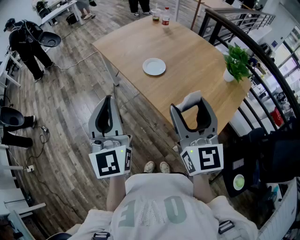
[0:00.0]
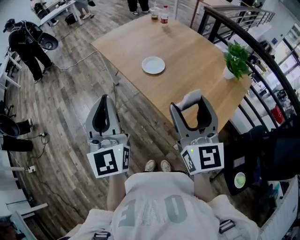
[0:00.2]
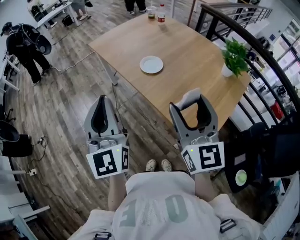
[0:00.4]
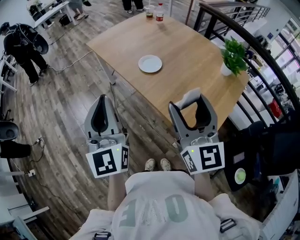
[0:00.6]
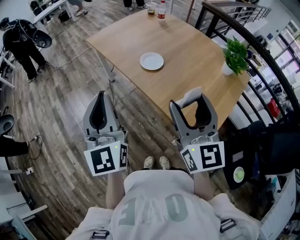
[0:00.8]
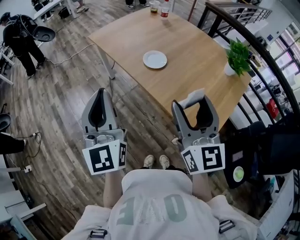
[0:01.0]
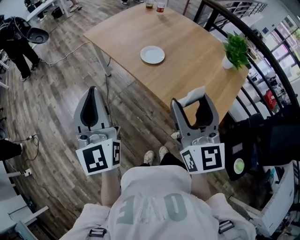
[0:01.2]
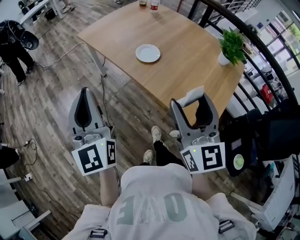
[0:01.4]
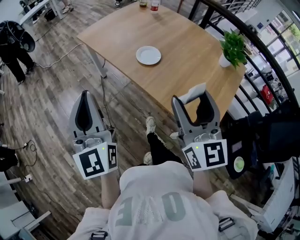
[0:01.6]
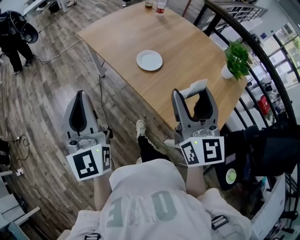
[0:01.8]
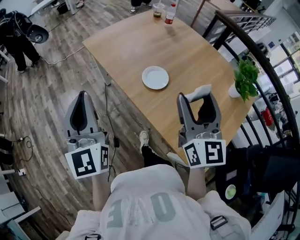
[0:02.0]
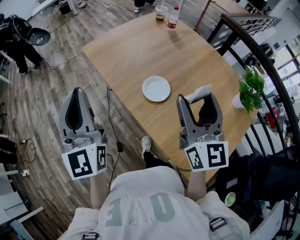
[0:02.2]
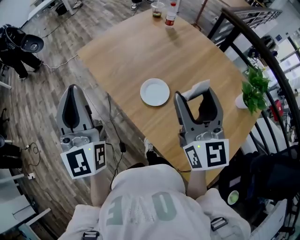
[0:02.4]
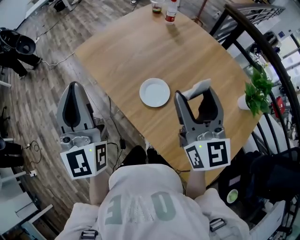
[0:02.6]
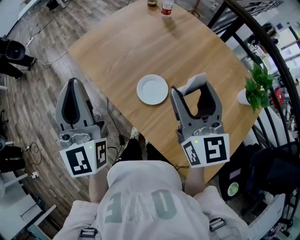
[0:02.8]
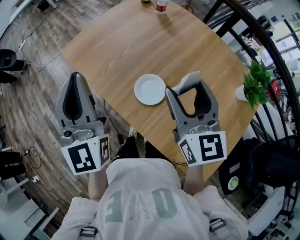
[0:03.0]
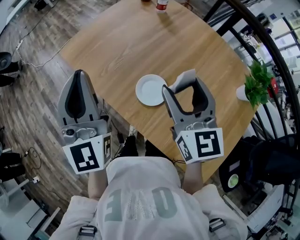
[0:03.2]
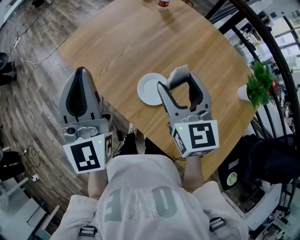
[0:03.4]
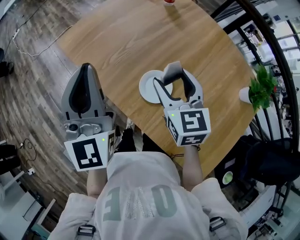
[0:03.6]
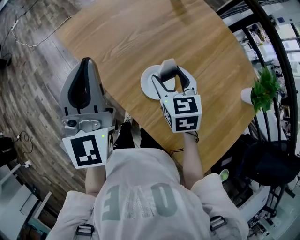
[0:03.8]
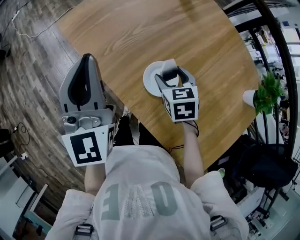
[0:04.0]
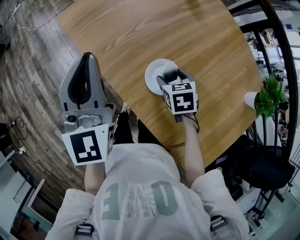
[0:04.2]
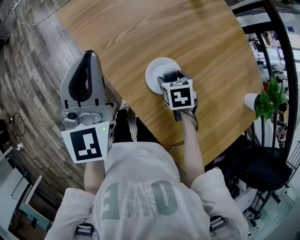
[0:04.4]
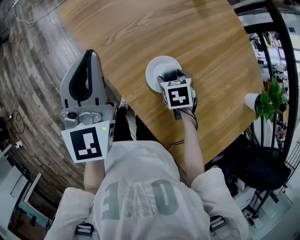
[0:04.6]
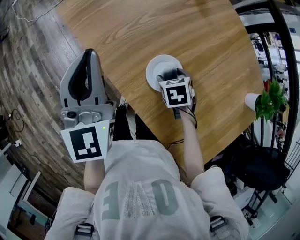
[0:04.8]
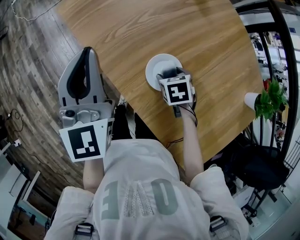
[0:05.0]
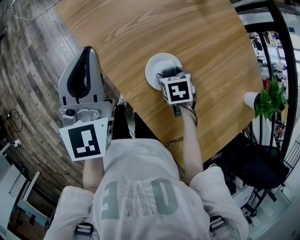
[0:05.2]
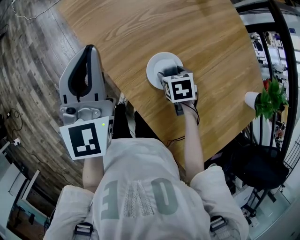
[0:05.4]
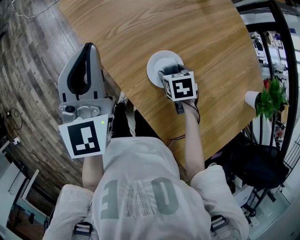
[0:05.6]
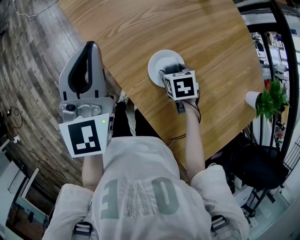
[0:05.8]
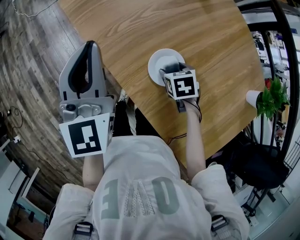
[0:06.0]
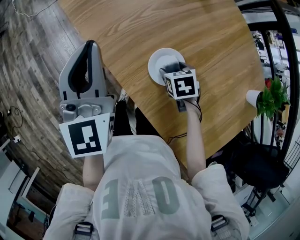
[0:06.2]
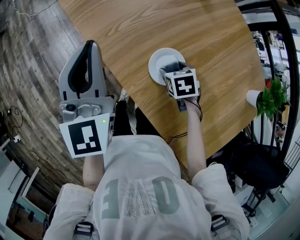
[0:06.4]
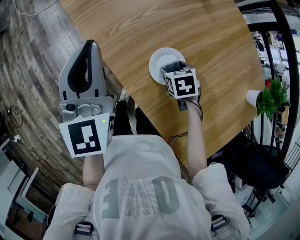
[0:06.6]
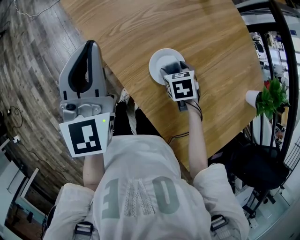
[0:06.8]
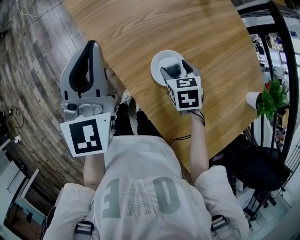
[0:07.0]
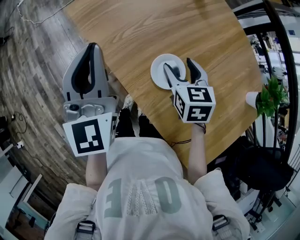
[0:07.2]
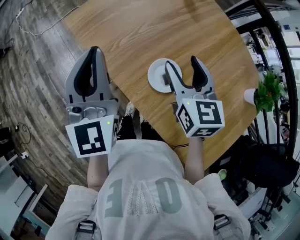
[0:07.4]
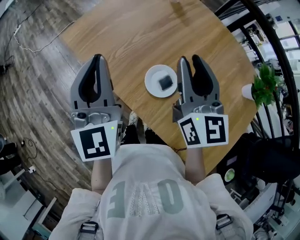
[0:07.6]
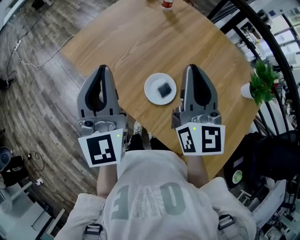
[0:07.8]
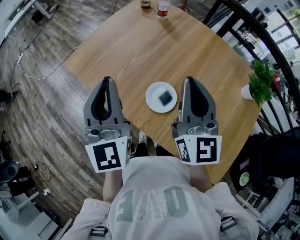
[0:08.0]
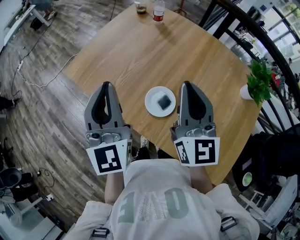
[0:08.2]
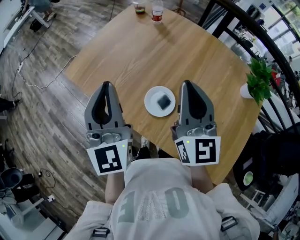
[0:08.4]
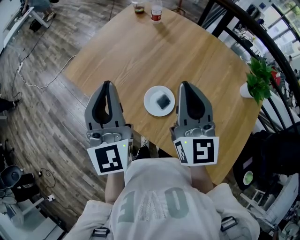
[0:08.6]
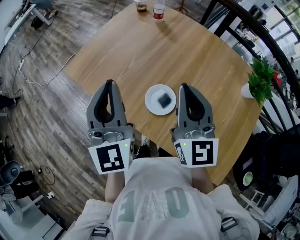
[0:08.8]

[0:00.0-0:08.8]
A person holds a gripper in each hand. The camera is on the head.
0:00.0 to 0:01.4: The left gripper goes approximately 10 cm to the left.
0:01.4 to 0:03.0: Both grippers travel together forward, roughly 35 cm.
0:03.0 to 0:04.4: The left gripper shifts some 10 cm downward and forward. The right gripper moves downward, roughly 30 cm, and tilts its fingers approximately 60 degrees downward.
0:04.4 to 0:05.8: The grippers move only a little.
0:05.8 to 0:07.4: The right gripper heads upward, covering some 25 cm, and angles its fingers upward, by some 50 degrees. Meanwhile the left gripper moves upward, some 5 cm.
0:07.4 to 0:08.8: The left gripper heads to the right, covering roughly 10 cm. The right gripper goes approximately 10 cm upward and to the right, turns by some 30 degrees, and closes.

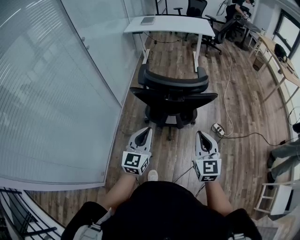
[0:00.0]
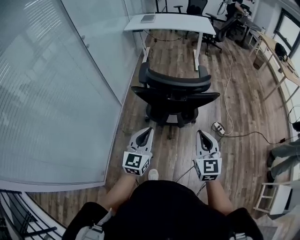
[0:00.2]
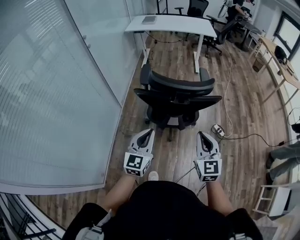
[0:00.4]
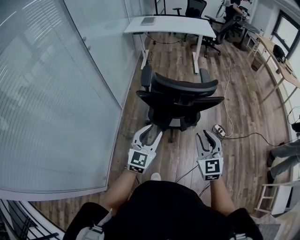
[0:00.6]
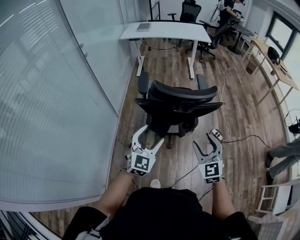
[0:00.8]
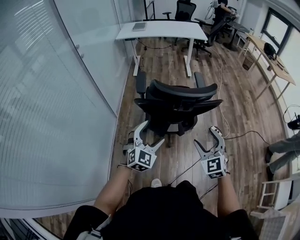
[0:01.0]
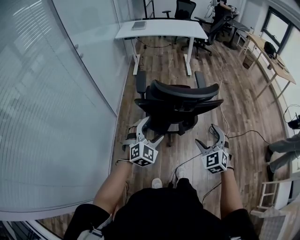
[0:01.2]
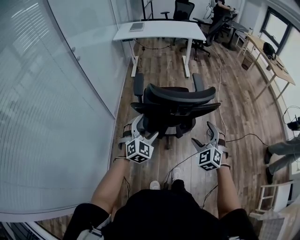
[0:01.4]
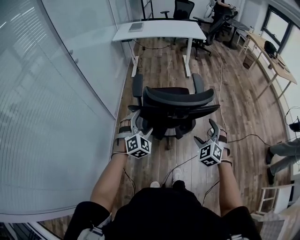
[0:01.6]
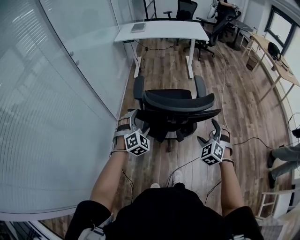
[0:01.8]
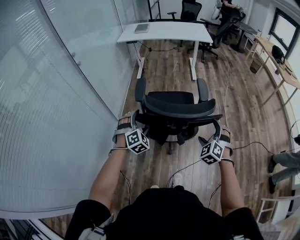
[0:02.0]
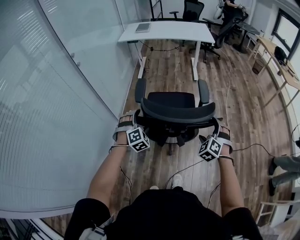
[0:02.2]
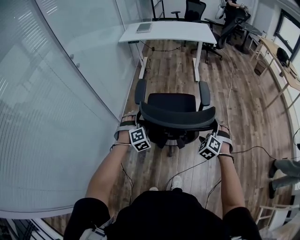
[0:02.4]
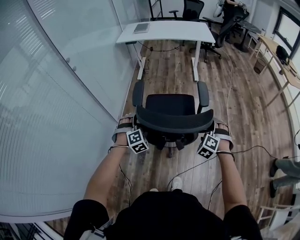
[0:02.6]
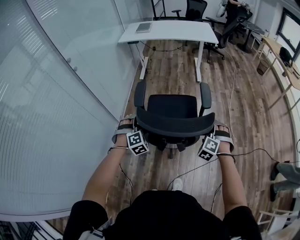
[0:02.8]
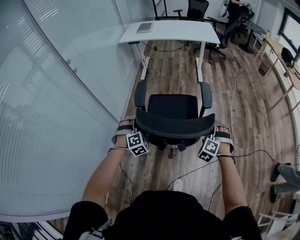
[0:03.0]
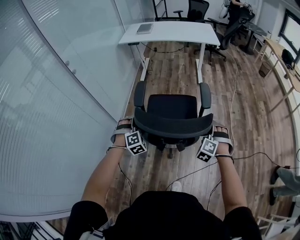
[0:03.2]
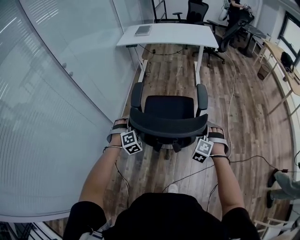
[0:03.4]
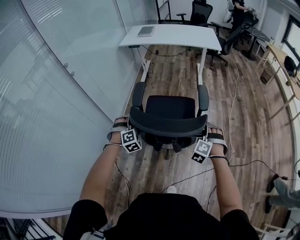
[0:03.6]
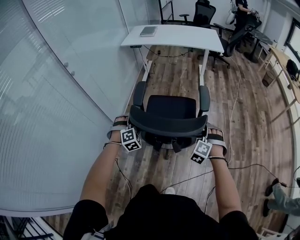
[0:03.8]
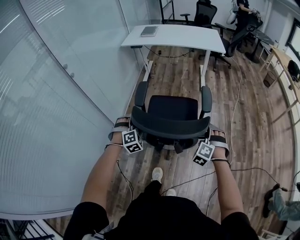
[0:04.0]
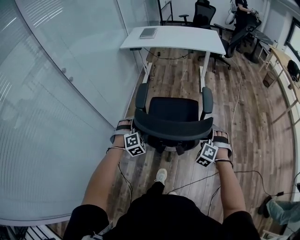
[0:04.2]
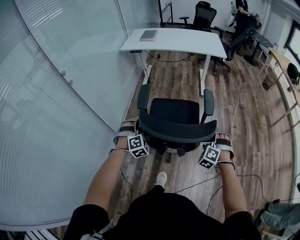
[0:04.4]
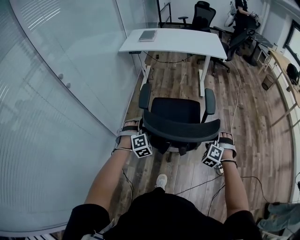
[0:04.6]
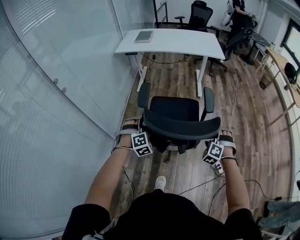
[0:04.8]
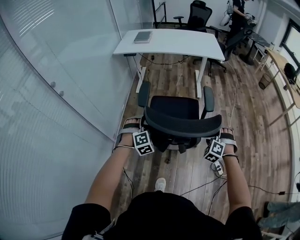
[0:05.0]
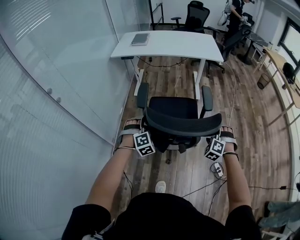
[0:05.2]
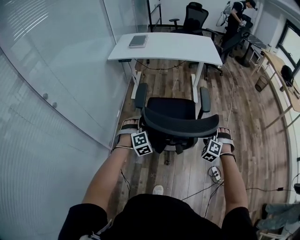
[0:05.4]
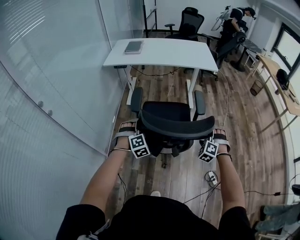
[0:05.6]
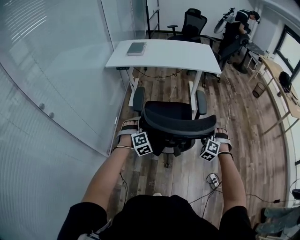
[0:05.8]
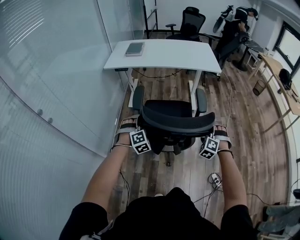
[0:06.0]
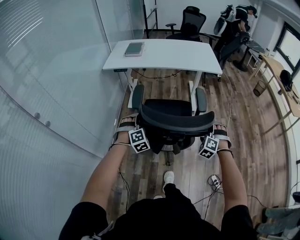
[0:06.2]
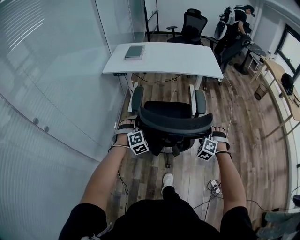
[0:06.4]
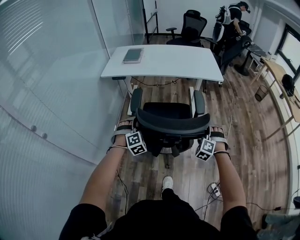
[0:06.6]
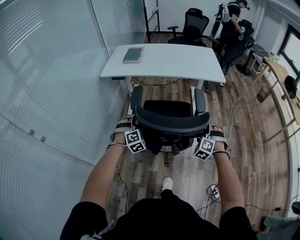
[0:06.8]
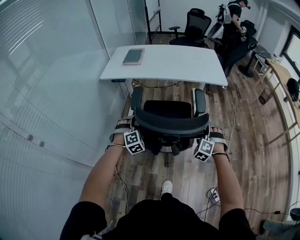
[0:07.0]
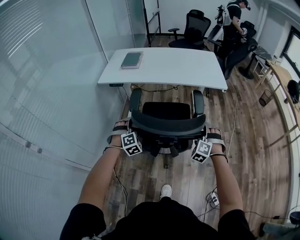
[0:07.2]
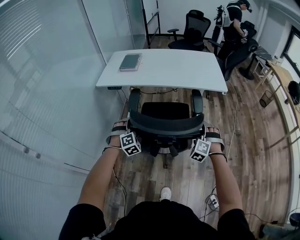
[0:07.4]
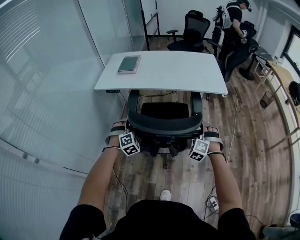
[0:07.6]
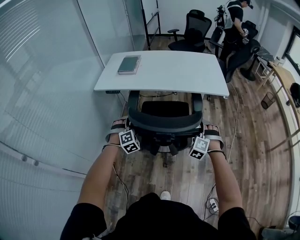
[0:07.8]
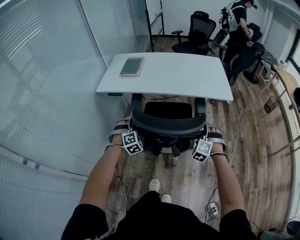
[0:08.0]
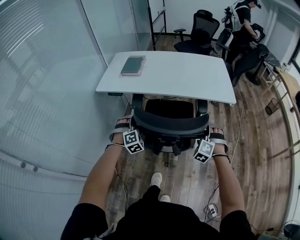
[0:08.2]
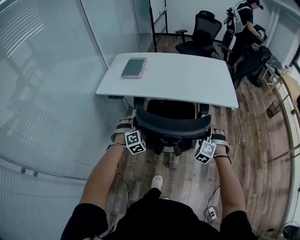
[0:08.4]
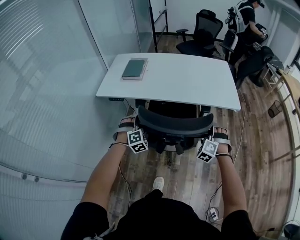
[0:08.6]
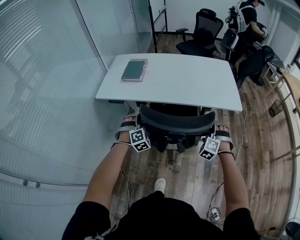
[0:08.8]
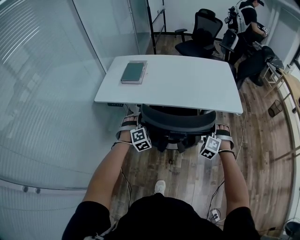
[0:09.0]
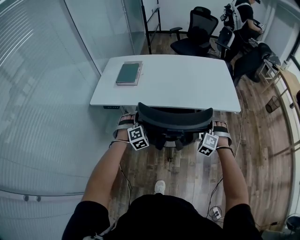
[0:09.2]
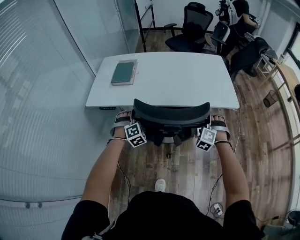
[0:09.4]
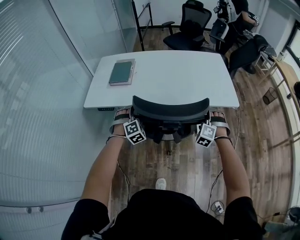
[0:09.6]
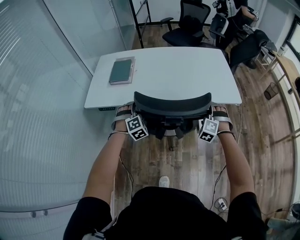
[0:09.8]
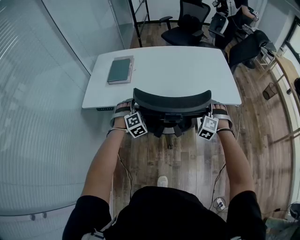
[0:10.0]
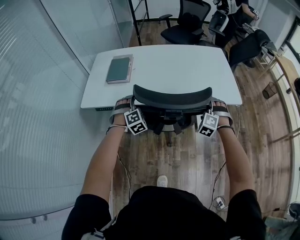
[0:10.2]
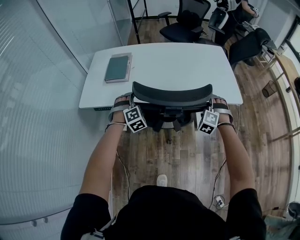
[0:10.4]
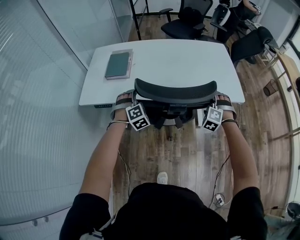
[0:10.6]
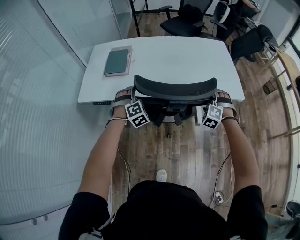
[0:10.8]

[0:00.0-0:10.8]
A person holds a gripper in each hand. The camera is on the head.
0:00.0 to 0:01.6: The left gripper goes approximately 15 cm forward, rotates around the line of its fingers by roughly 50 degrees, clockwise from behind, and opens, while the right gripper is displaced forward and downward by approximately 15 cm, turns by some 50 degrees, and opens its fingers.
0:01.6 to 0:03.0: Both grippers move forward and downward, some 15 cm. The left gripper swivels some 30 degrees, while the right gripper swivels some 30 degrees.
0:03.0 to 0:04.6: The grippers both shift forward by about 15 cm.
0:04.6 to 0:06.2: Both grippers move forward, about 25 cm.
0:06.2 to 0:07.8: The grippers both shift forward by roughly 30 cm.
0:07.8 to 0:09.2: Both grippers move forward, about 20 cm.
0:09.2 to 0:10.8: Both grippers travel together forward, about 10 cm.

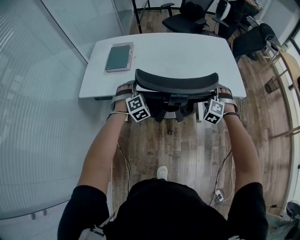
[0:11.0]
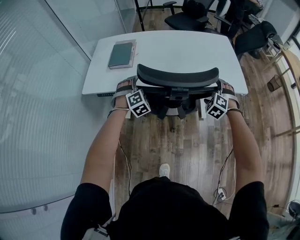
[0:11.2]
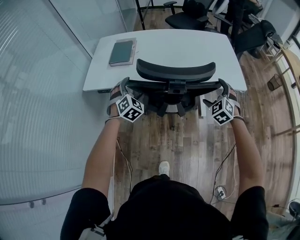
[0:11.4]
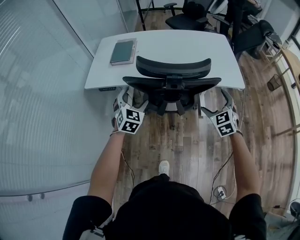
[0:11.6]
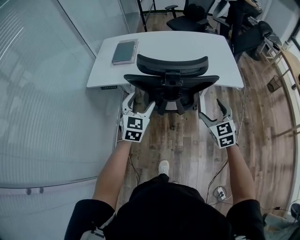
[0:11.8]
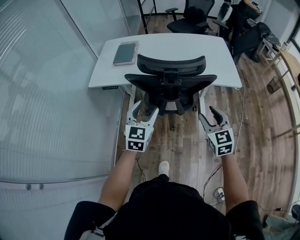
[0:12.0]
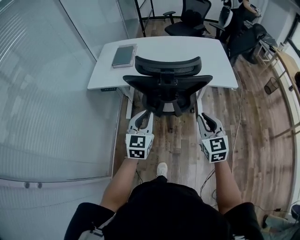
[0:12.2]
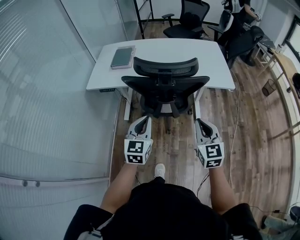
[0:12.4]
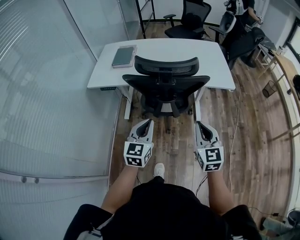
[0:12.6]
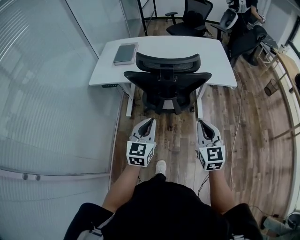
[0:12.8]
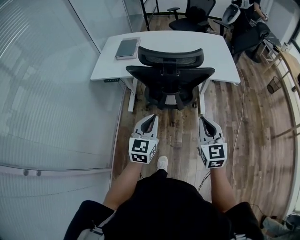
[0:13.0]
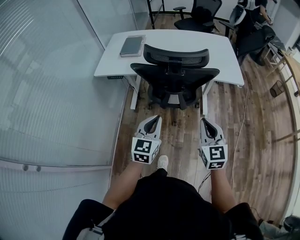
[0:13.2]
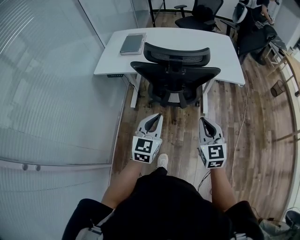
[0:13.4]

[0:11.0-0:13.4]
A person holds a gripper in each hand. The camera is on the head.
0:11.0 to 0:12.2: The two grippers go some 30 cm backward and upward. The right gripper twists approximately 60 degrees clockwise, seen from behind, and closes up; the left gripper rotates around the line of its fingers by approximately 60 degrees, counterclockwise from behind, and closes its fingers.
0:12.2 to 0:13.4: The left gripper moves backward, approximately 5 cm. Meanwhile the right gripper ends up about 5 cm from where it was.

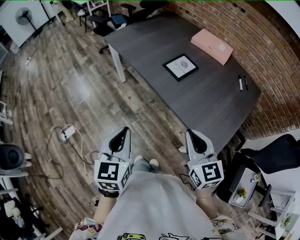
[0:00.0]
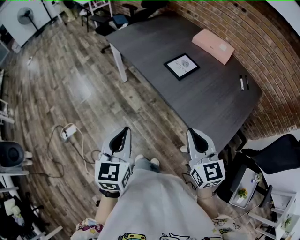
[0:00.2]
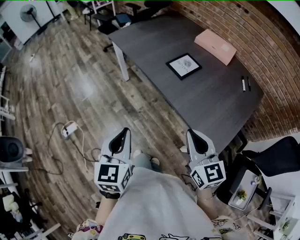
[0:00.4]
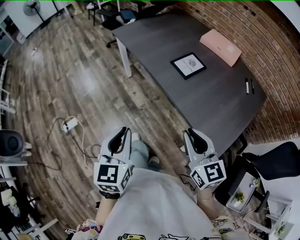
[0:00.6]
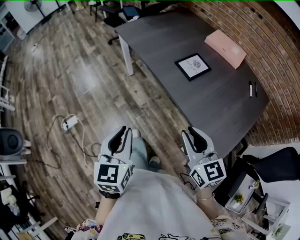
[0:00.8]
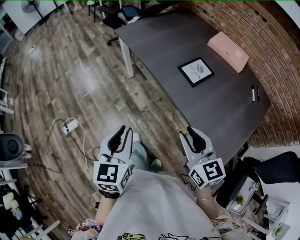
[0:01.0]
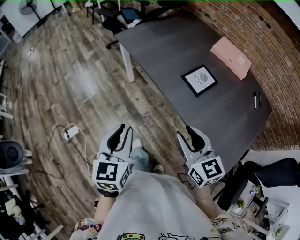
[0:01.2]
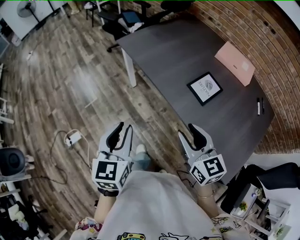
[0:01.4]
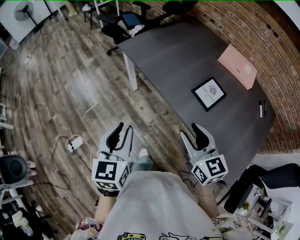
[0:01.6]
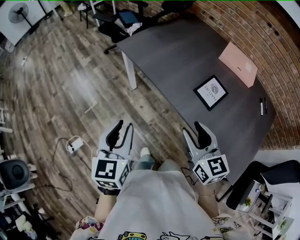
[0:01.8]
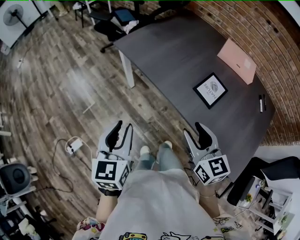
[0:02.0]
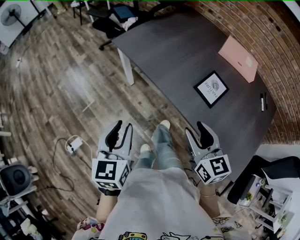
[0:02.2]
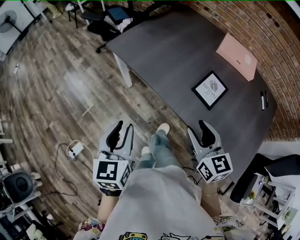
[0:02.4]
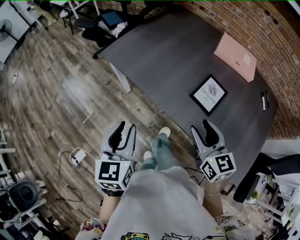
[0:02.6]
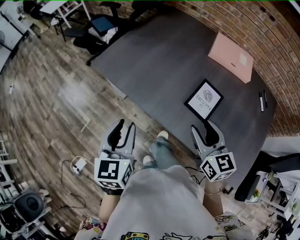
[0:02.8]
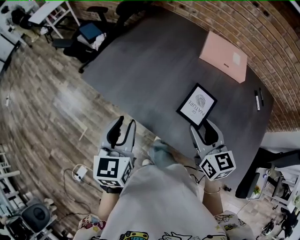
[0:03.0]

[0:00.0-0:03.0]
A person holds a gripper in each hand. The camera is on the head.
0:00.0 to 0:01.6: The two grippers go some 25 cm forward and to the left. The right gripper opens up. Meanwhile the left gripper opens its fingers.
0:01.6 to 0:03.0: The left gripper shifts about 25 cm forward; the right gripper shifts roughly 20 cm forward and to the right, and rotates roughly 20 degrees.
